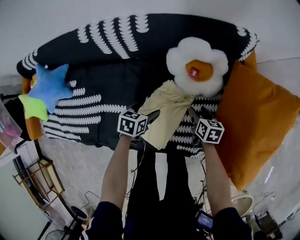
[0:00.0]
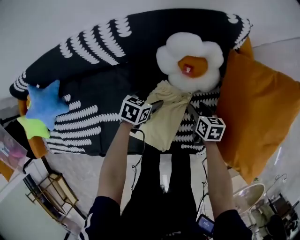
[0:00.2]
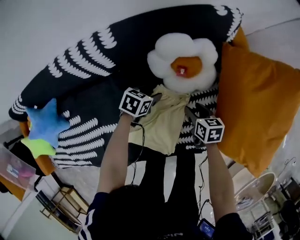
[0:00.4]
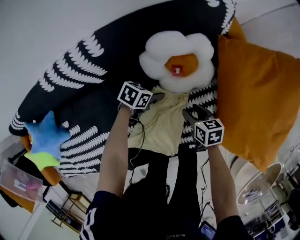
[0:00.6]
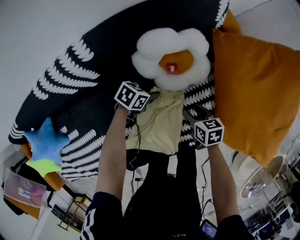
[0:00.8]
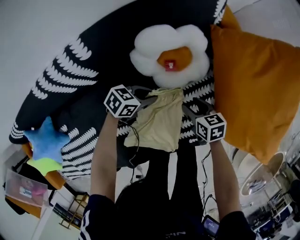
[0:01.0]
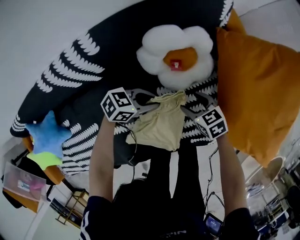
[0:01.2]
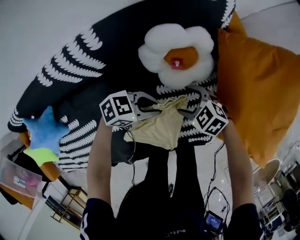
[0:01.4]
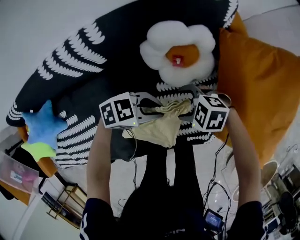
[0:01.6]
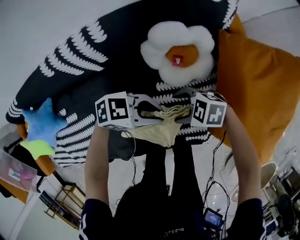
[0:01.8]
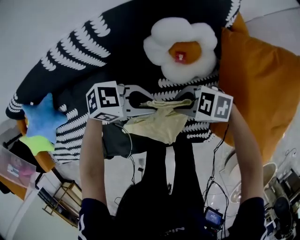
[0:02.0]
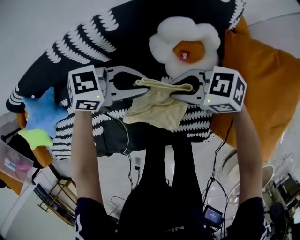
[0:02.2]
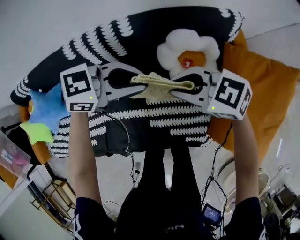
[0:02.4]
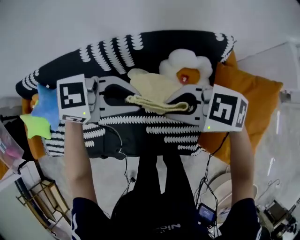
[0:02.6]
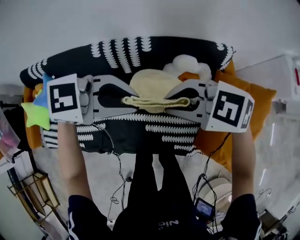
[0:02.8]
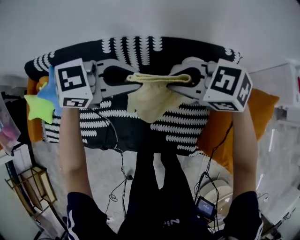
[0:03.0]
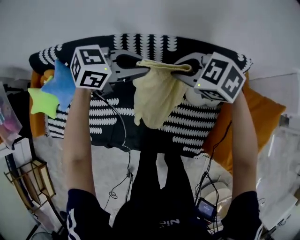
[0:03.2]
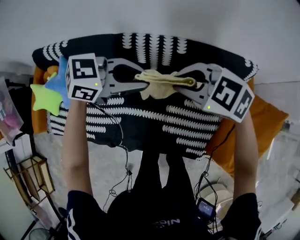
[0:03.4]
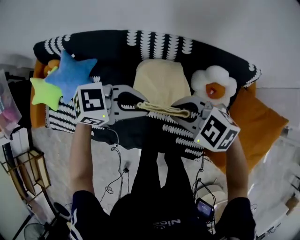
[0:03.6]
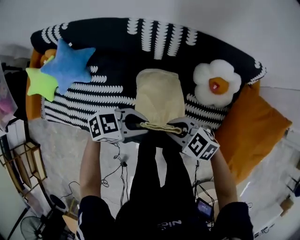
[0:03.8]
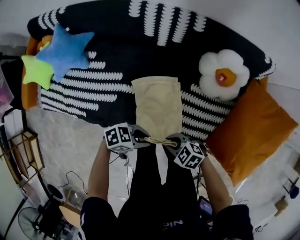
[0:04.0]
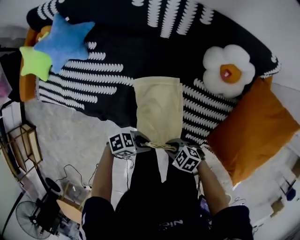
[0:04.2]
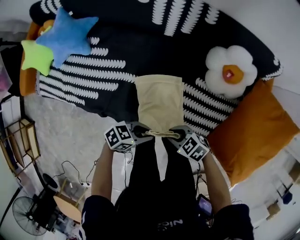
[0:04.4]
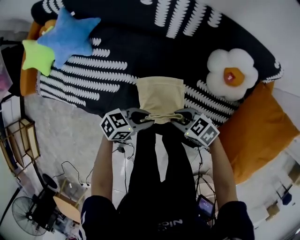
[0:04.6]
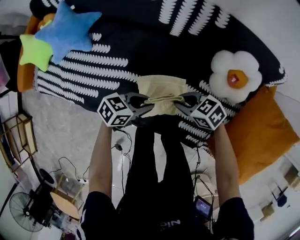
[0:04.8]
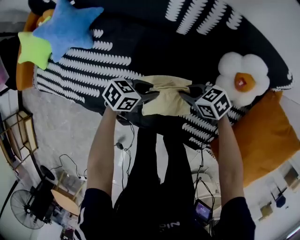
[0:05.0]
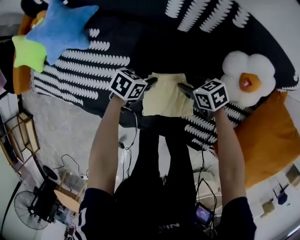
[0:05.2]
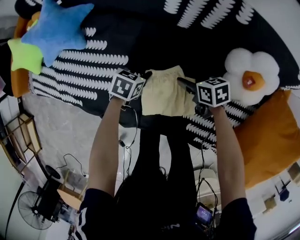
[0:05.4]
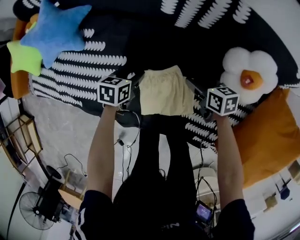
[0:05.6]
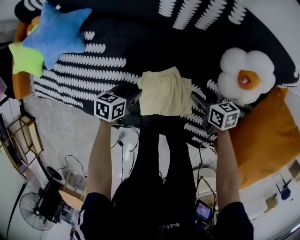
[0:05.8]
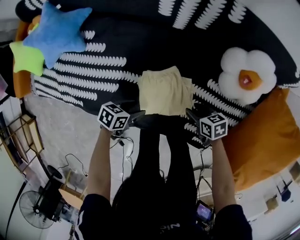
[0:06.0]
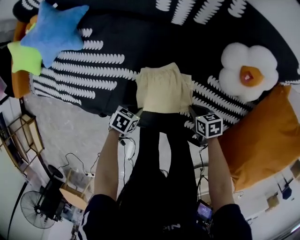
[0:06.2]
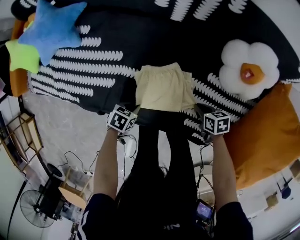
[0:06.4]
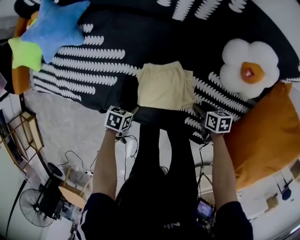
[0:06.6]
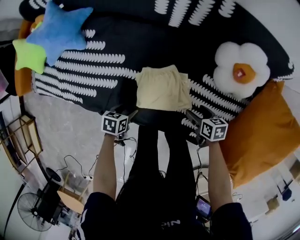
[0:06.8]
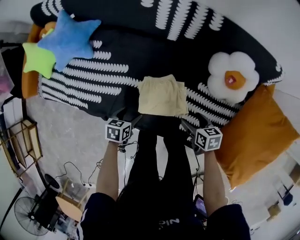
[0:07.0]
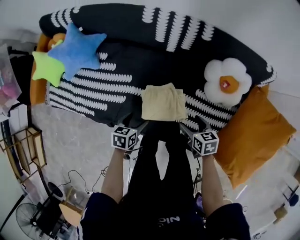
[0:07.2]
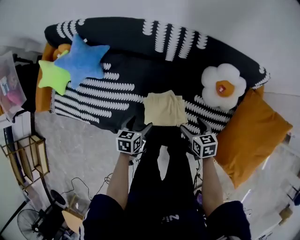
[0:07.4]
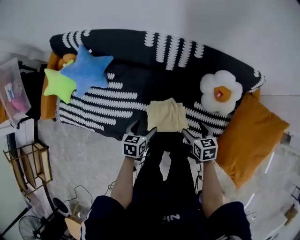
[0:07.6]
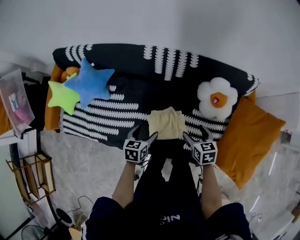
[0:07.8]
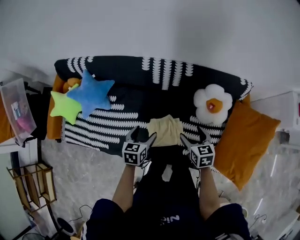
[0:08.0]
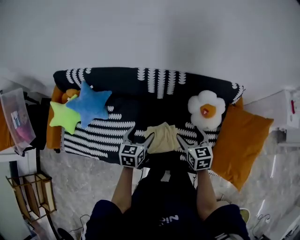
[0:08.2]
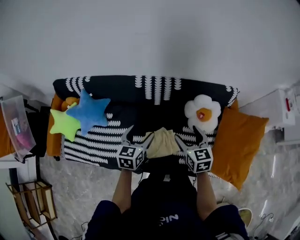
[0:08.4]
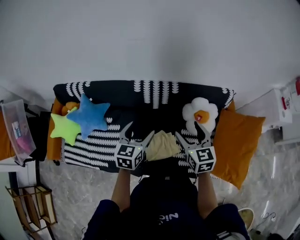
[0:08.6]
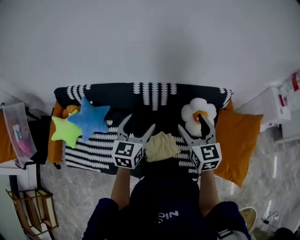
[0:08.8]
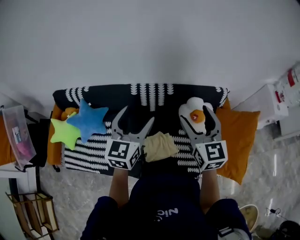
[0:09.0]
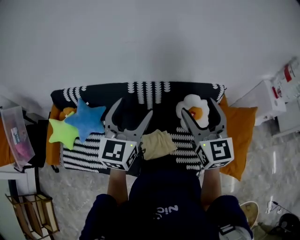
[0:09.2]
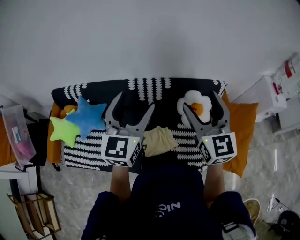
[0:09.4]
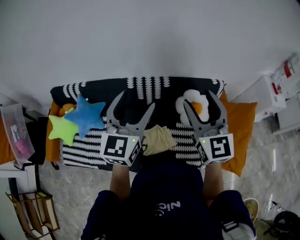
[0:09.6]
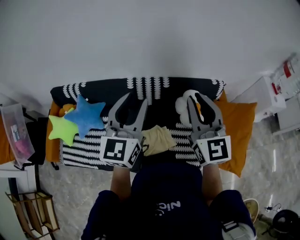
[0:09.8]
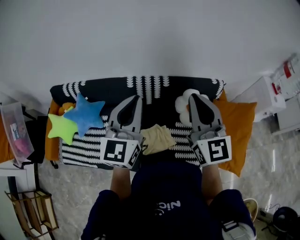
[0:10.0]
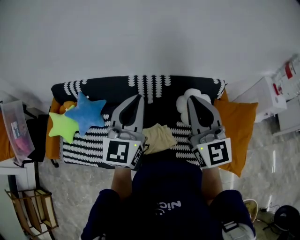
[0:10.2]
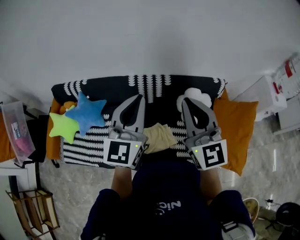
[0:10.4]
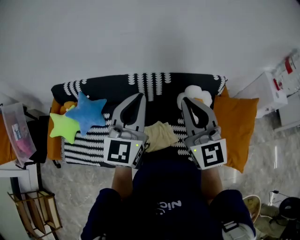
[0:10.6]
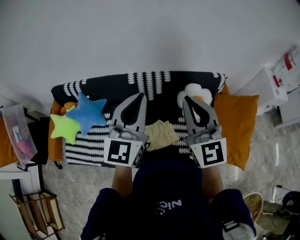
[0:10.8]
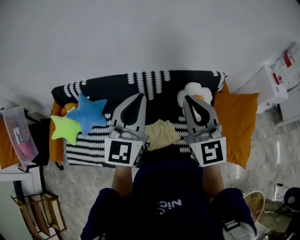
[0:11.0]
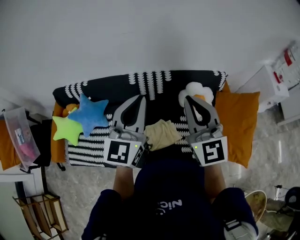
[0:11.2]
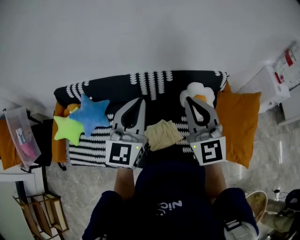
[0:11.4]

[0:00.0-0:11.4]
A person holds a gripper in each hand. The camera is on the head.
0:00.0 to 0:01.4: The right gripper ends up roughly 5 cm from where it was, and rolls counterclockwise, seen from behind, by about 50 degrees. Meanwhile the left gripper reaches about 10 cm downward, then returns, swivels about 70 degrees, and closes its fingers.
0:01.4 to 0:02.8: Both grippers move upward, some 40 cm. The left gripper rotates some 30 degrees. Meanwhile the right gripper rotates about 40 degrees, and closes its fingers.
0:02.8 to 0:04.2: The two grippers go some 35 cm downward. The left gripper rotates around the line of its fingers by some 40 degrees, counterclockwise from behind; the right gripper changes its angle by roughly 30 degrees.
0:04.2 to 0:05.6: The right gripper moves roughly 10 cm downward and comes back, rotates roughly 50 degrees, and opens its fingers. Meanwhile the left gripper moves approximately 35 cm, and turns by some 60 degrees.
0:05.6 to 0:07.2: The right gripper moves some 10 cm downward and comes back, and closes, then reopens, while the left gripper travels downward and back again, roughly 10 cm each way, and opens its fingers.
0:07.2 to 0:08.6: The right gripper moves upward, roughly 35 cm, and rotates approximately 40 degrees, while the left gripper moves upward and forward, approximately 35 cm, and changes its angle by about 40 degrees.
0:08.6 to 0:10.0: Both grippers travel together upward, about 20 cm. The right gripper changes its angle by roughly 30 degrees, and closes its fingers. The left gripper turns by approximately 30 degrees, and closes its fingers.
0:10.0 to 0:11.4: The grippers make only small movements.

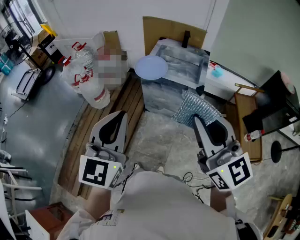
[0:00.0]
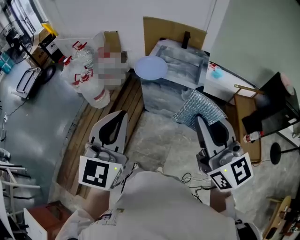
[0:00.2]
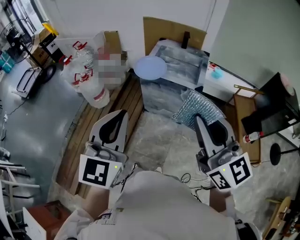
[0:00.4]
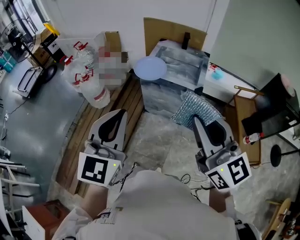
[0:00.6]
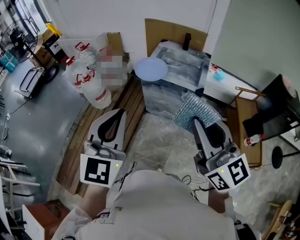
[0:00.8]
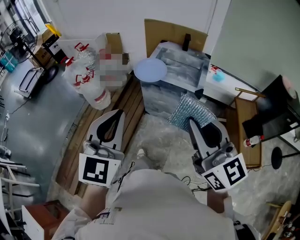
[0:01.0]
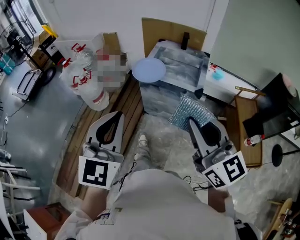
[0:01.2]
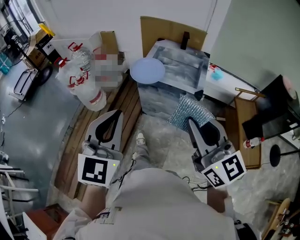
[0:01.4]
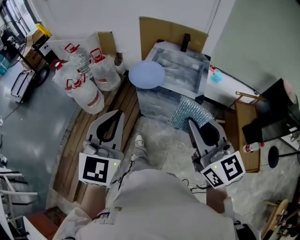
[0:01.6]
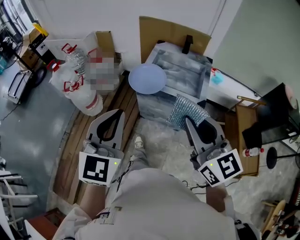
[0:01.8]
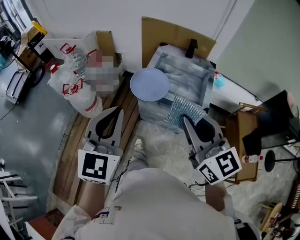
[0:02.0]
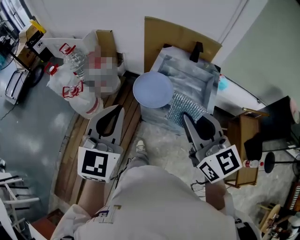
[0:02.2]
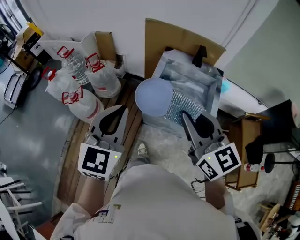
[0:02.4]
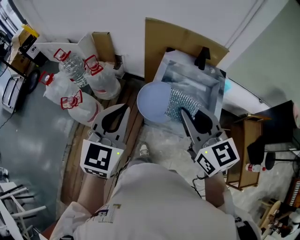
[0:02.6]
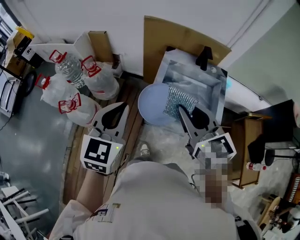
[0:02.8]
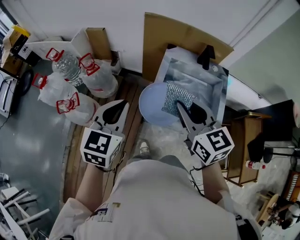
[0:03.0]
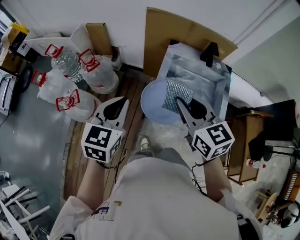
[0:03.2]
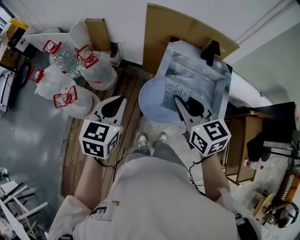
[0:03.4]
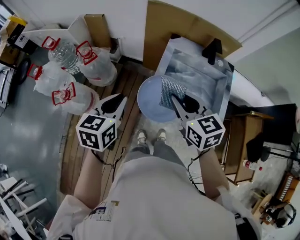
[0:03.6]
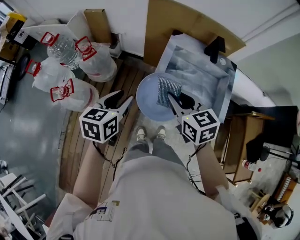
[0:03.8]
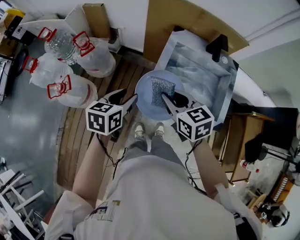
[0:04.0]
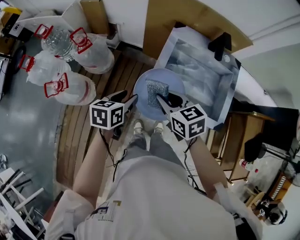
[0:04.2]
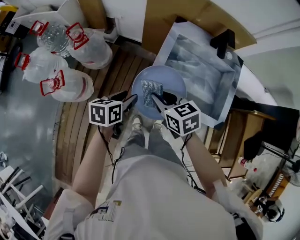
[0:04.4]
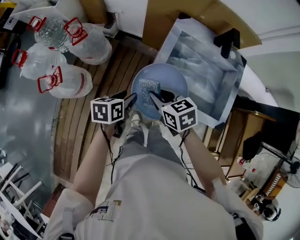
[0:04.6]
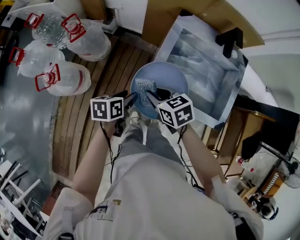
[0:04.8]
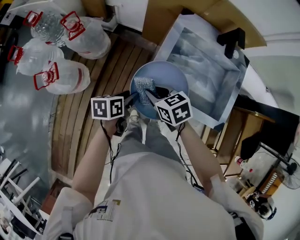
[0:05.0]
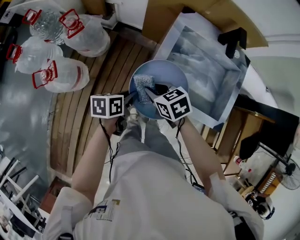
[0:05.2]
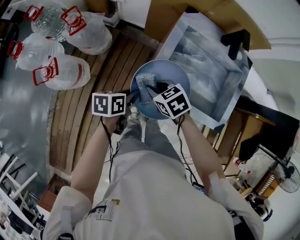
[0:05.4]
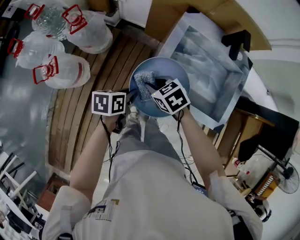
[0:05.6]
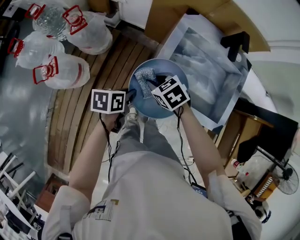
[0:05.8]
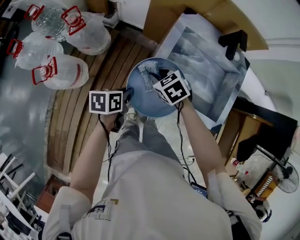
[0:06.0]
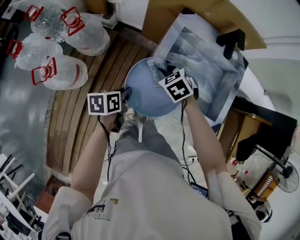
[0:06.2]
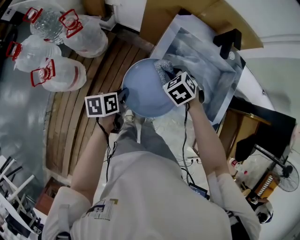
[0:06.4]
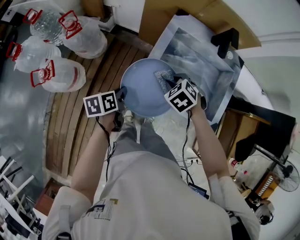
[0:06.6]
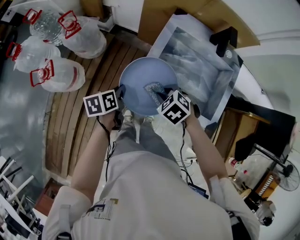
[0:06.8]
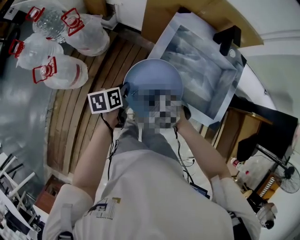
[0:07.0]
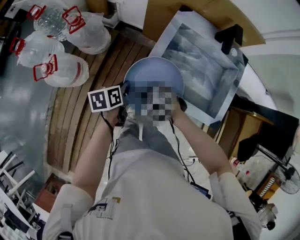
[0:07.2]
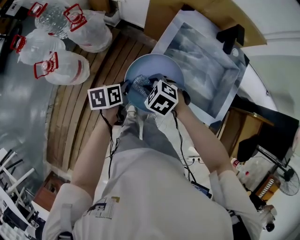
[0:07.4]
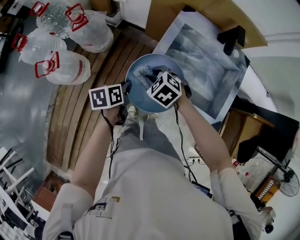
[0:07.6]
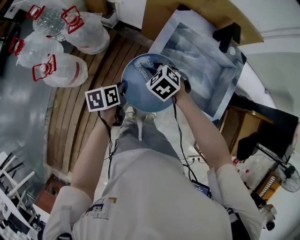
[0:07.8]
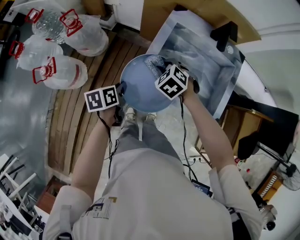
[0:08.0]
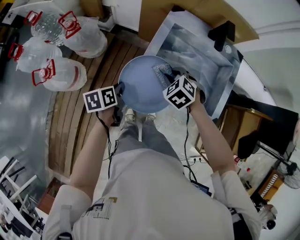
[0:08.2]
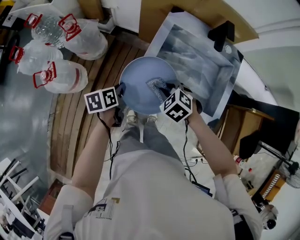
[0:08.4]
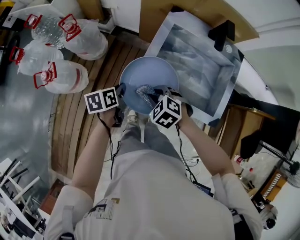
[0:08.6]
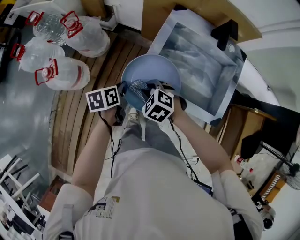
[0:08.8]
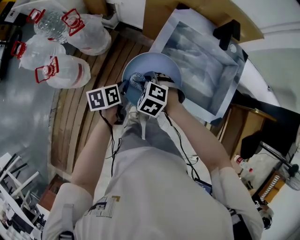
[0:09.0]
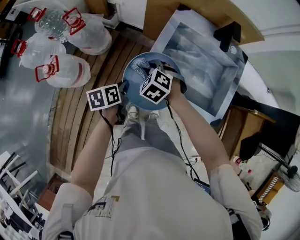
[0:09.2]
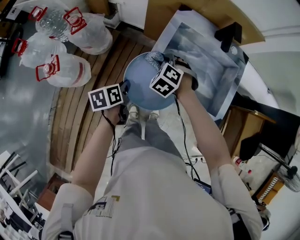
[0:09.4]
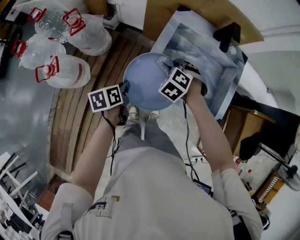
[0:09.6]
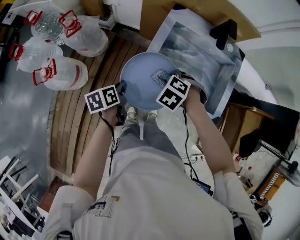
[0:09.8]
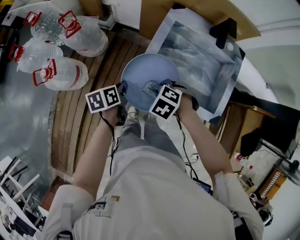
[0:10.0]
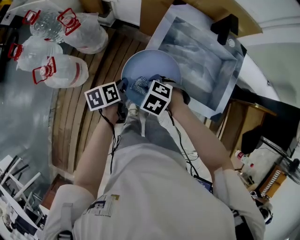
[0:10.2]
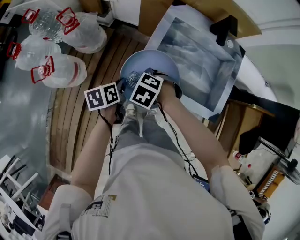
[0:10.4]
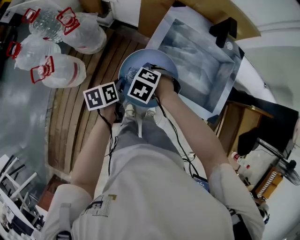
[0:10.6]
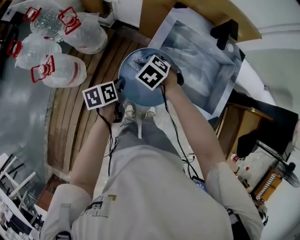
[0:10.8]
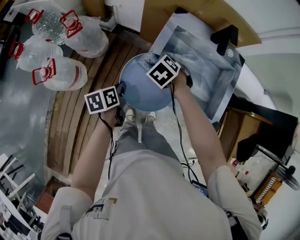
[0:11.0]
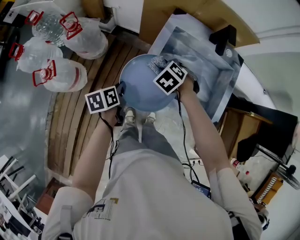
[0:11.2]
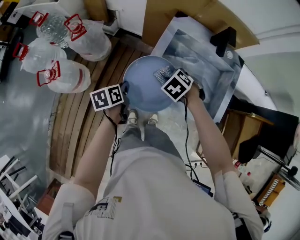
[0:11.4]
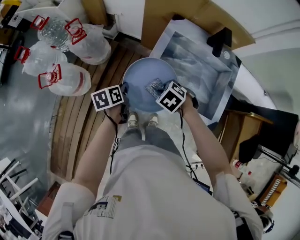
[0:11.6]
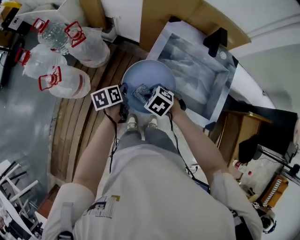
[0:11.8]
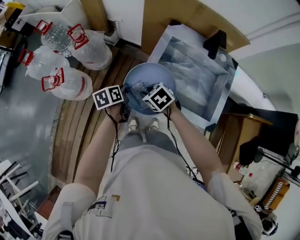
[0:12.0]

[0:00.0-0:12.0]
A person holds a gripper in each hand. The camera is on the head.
0:00.0 to 0:01.6: The left gripper travels forward by approximately 10 cm; the right gripper travels forward and downward by roughly 10 cm.
0:01.6 to 0:03.0: The two grippers travel together, forward, approximately 40 cm.
0:03.0 to 0:04.4: Both grippers travel together downward, roughly 25 cm. The right gripper swivels some 30 degrees. The left gripper rolls counterclockwise, seen from behind, by about 40 degrees, and opens its fingers.
0:04.4 to 0:06.0: The left gripper is displaced downward by some 5 cm, and closes up; the right gripper moves downward and forward, about 10 cm, and changes its angle by approximately 30 degrees.
0:07.6 to 0:09.0: The right gripper reaches some 10 cm to the right, then returns.
0:10.4 to 0:12.0: The right gripper turns by approximately 30 degrees.
